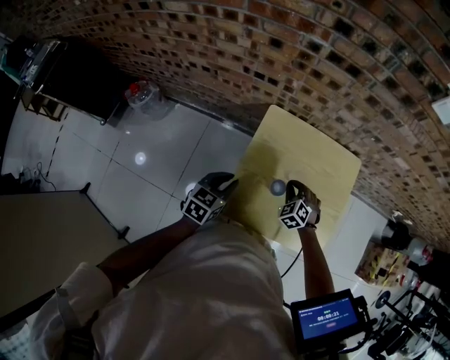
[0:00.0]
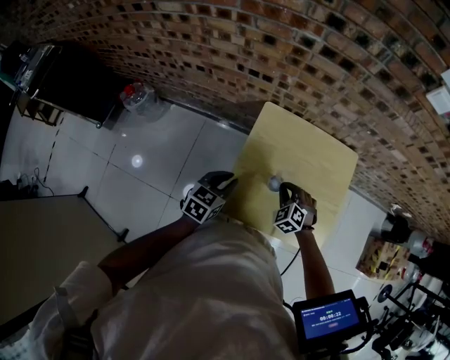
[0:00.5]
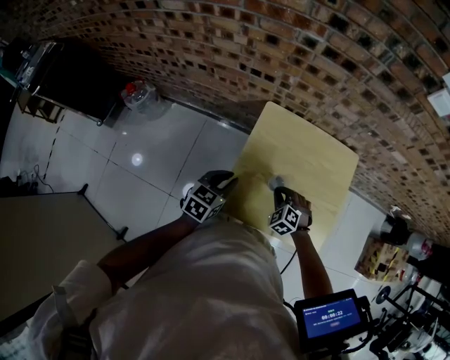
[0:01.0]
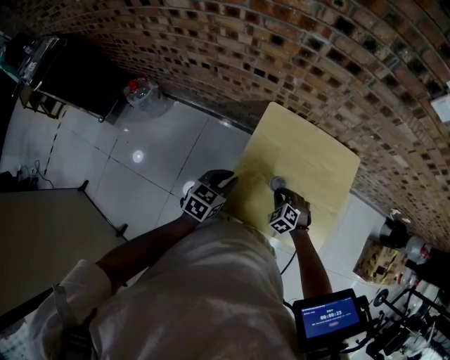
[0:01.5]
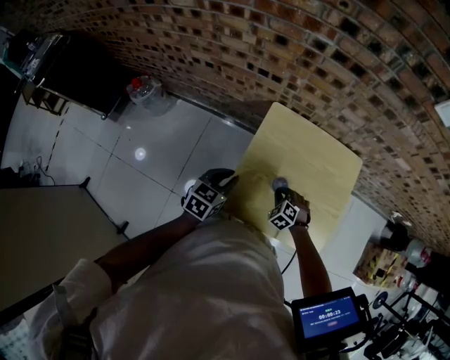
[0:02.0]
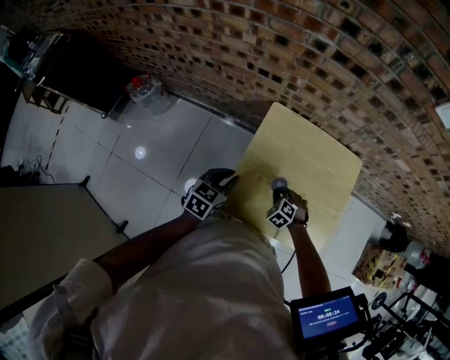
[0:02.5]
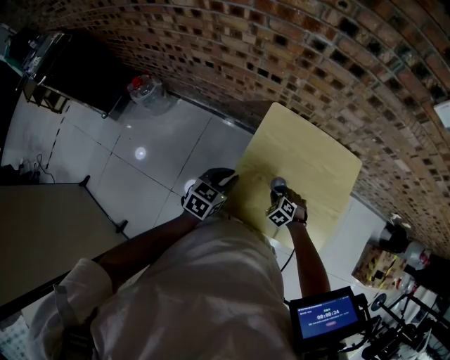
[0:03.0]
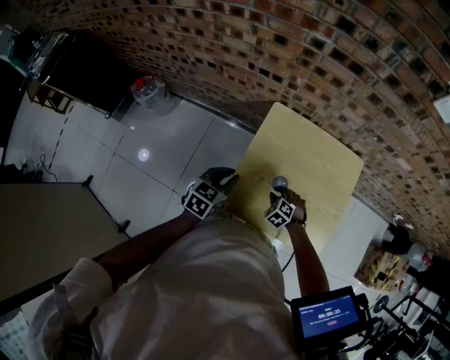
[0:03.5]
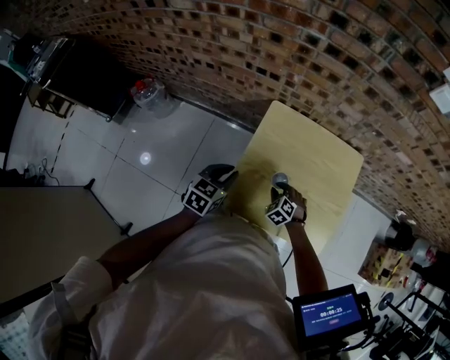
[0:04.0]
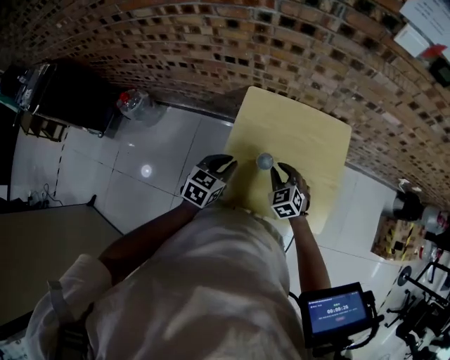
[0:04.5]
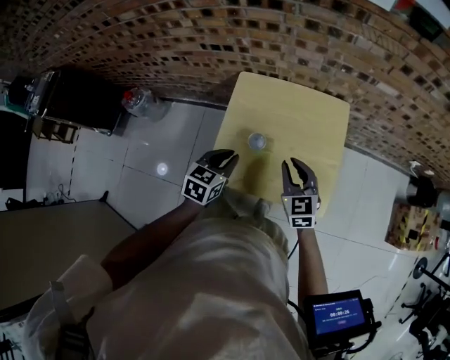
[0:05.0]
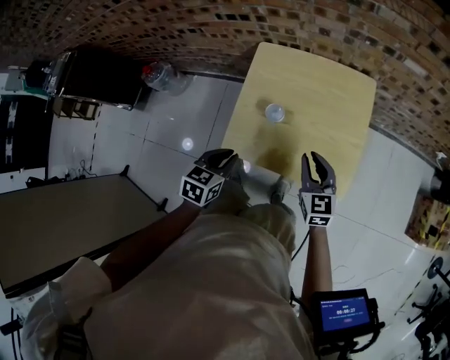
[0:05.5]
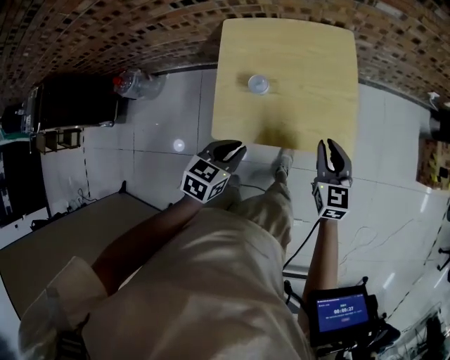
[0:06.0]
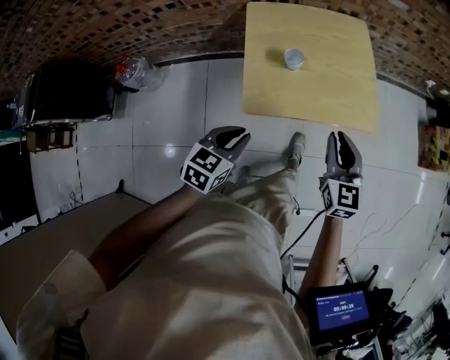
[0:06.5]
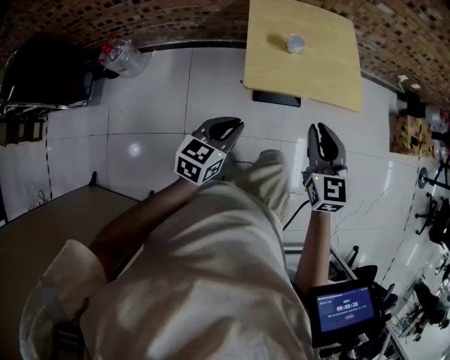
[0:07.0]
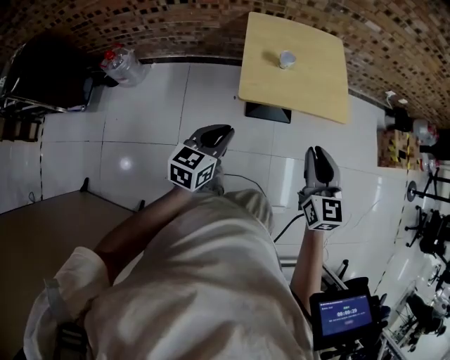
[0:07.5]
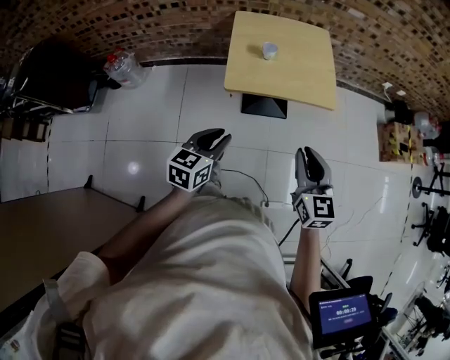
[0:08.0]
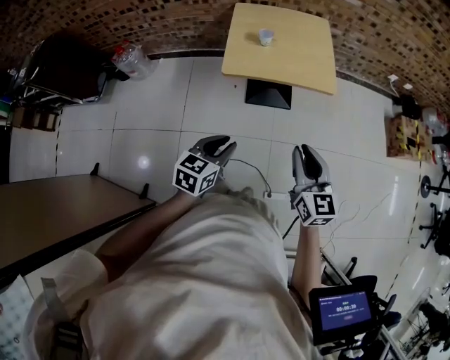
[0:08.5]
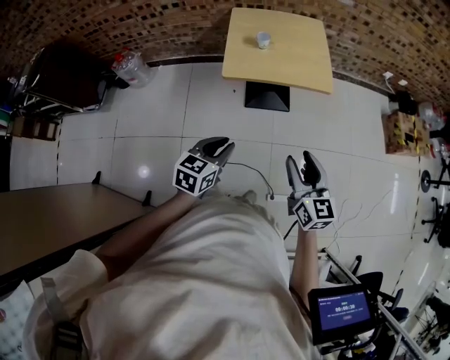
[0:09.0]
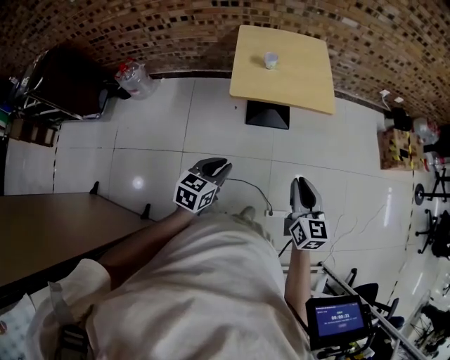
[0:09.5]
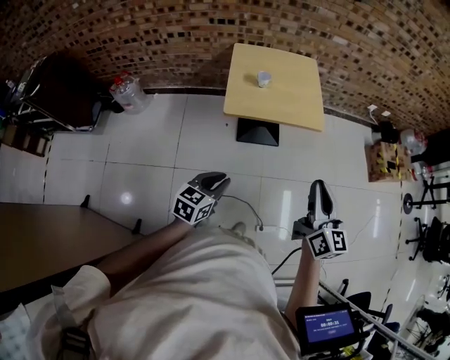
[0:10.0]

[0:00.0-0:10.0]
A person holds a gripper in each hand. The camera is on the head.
0:00.0 to 0:02.0: The right gripper shifts about 10 cm backward and downward.
0:02.0 to 0:04.0: The grippers make only small movements.
0:04.0 to 0:06.0: The right gripper shifts approximately 30 cm to the right, upward and backward, and points its fingers some 40 degrees further upward, while the left gripper heads to the right and backward, covering some 25 cm.
0:06.0 to 0:08.0: Both grippers move backward, roughly 35 cm. The left gripper turns by approximately 20 degrees.
0:08.0 to 0:10.0: The right gripper goes about 15 cm upward, backward and to the right, rotates approximately 20 degrees, and opens, then closes once more. The left gripper shifts about 10 cm backward.

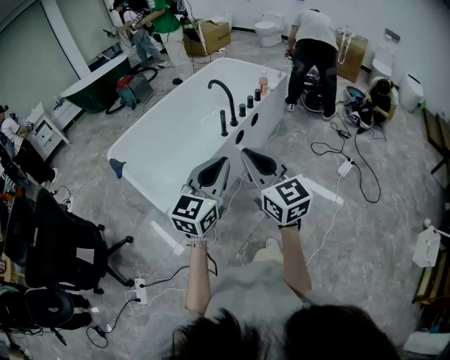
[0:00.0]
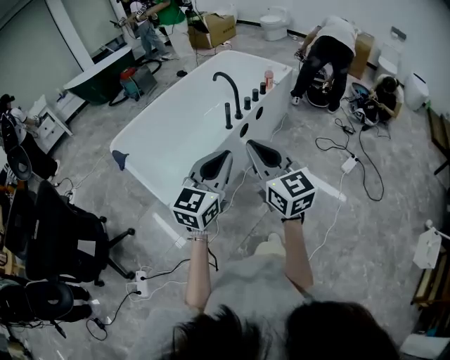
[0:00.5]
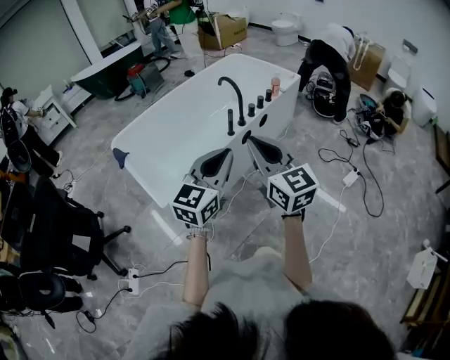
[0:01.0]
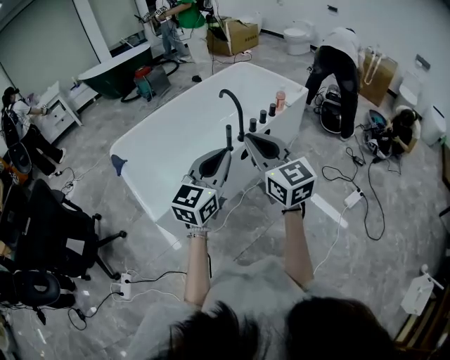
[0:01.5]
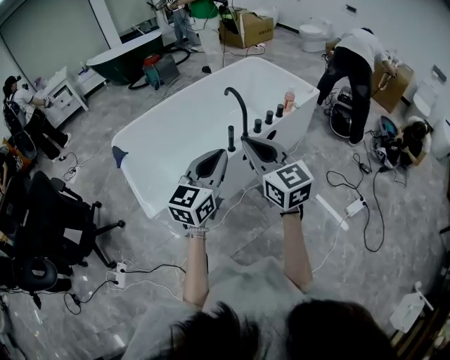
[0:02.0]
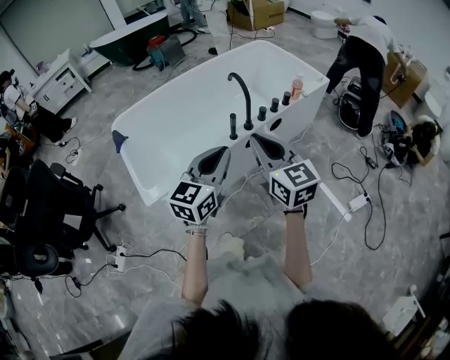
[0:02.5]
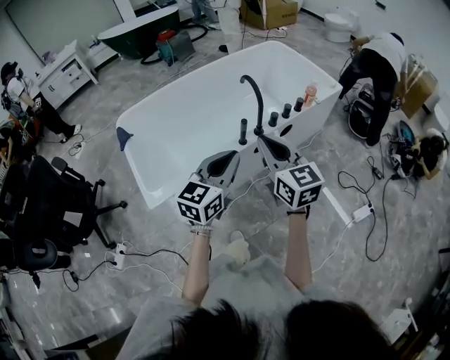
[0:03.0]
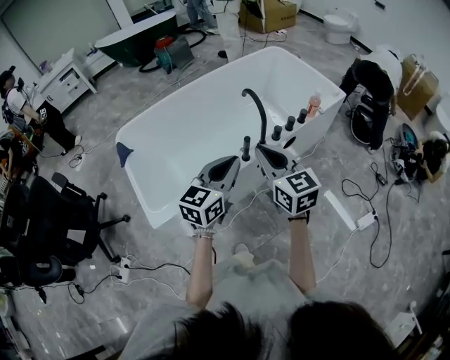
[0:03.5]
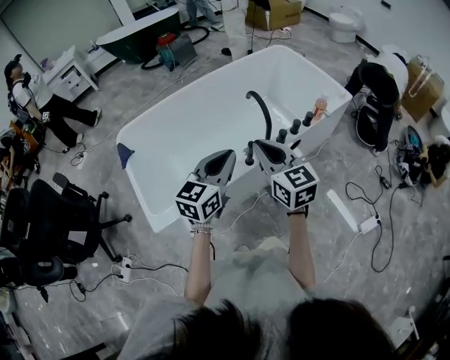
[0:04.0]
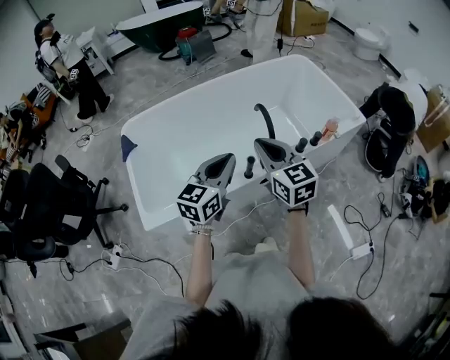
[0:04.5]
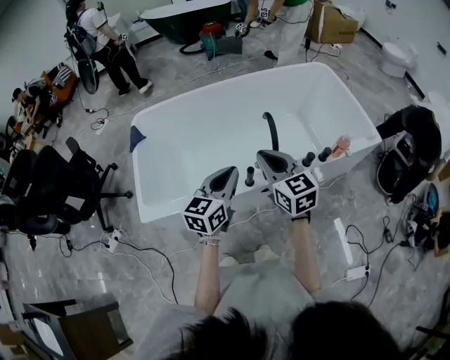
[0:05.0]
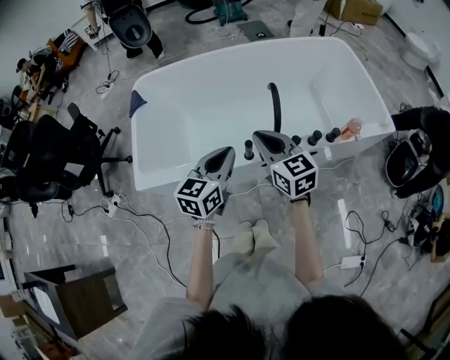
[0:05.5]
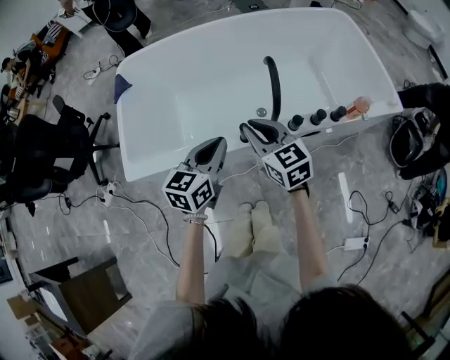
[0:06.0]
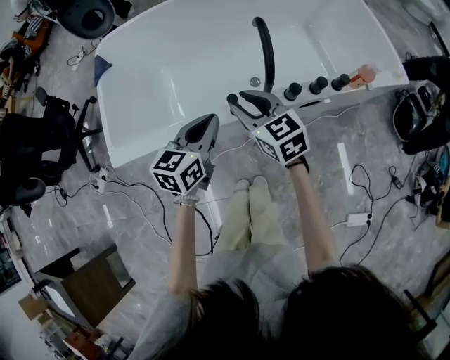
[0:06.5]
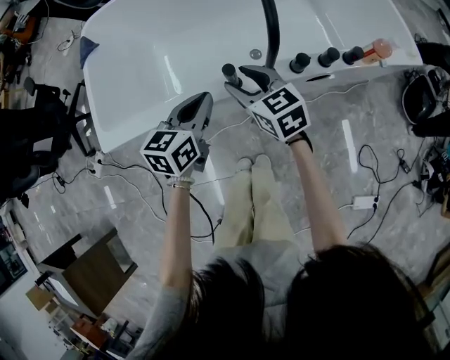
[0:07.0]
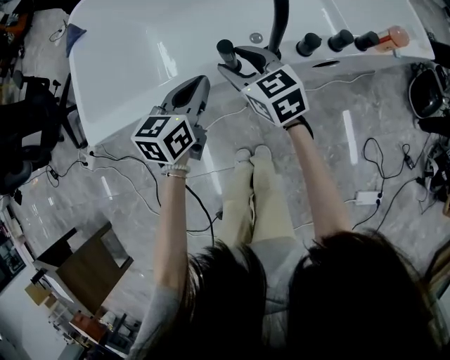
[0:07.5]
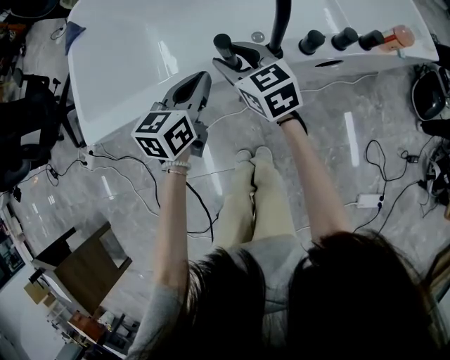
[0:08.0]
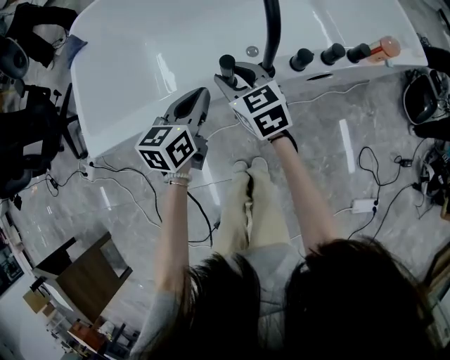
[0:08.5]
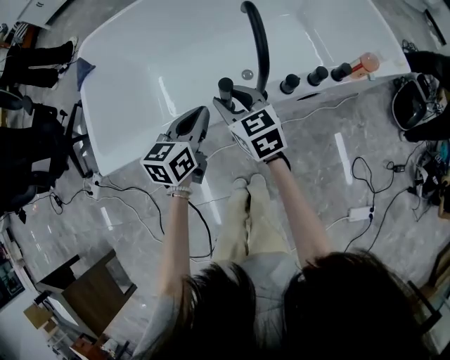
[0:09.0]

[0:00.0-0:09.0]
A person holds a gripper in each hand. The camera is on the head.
0:00.0 to 0:02.0: The two grippers go some 20 cm forward.
0:02.0 to 0:04.5: The two grippers go approximately 25 cm forward.
0:04.5 to 0:07.0: Both grippers travel together downward, roughly 25 cm. The right gripper rotates about 30 degrees, and opens its fingers, while the left gripper changes its angle by some 30 degrees.

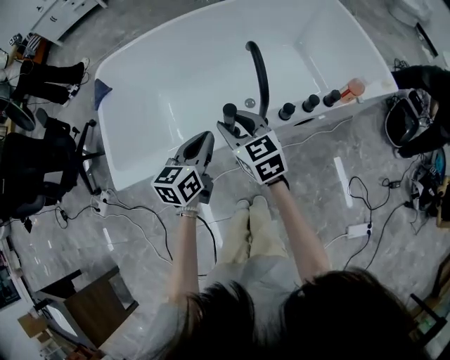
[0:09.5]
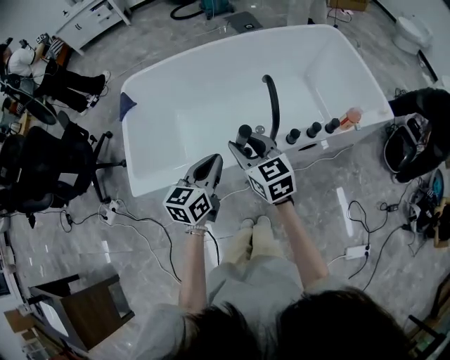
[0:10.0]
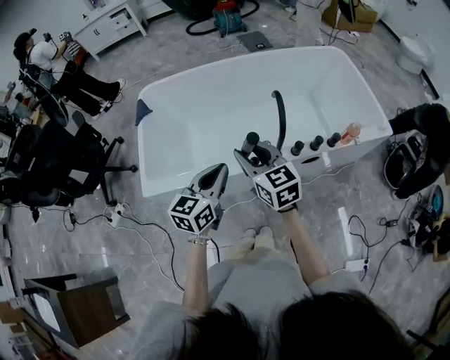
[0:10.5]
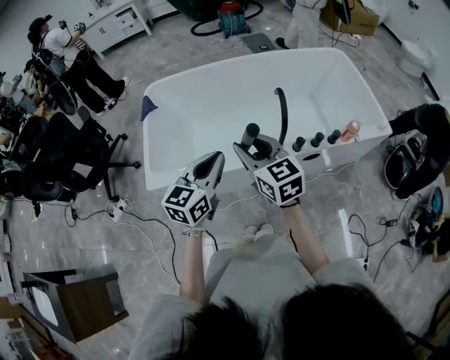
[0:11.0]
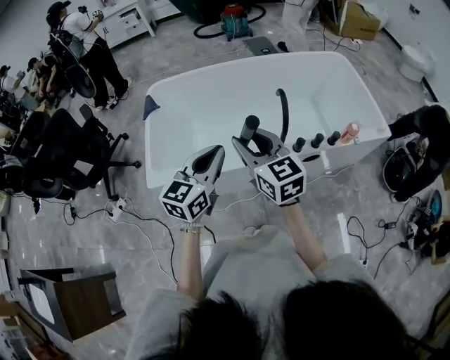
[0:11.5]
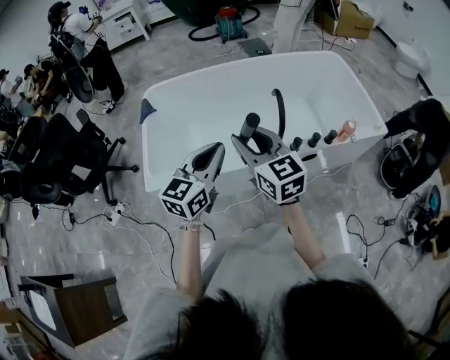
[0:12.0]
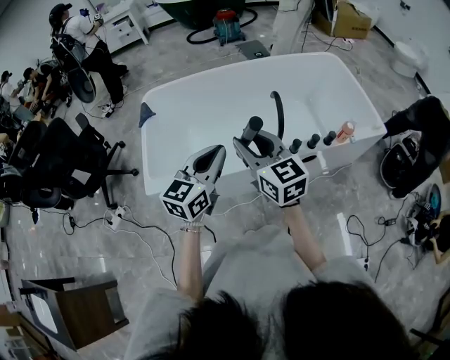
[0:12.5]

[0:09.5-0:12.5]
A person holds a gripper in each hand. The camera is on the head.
0:09.5 to 0:11.0: The two grippers go roughly 20 cm upward and backward.
0:11.0 to 0:12.5: There are only small adjustments of the grippers.

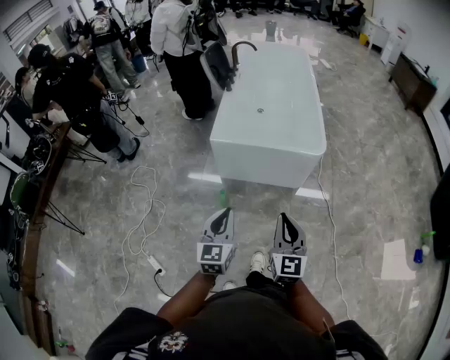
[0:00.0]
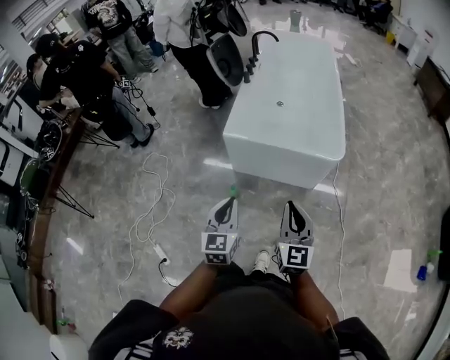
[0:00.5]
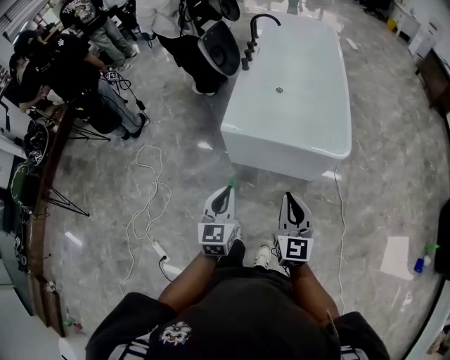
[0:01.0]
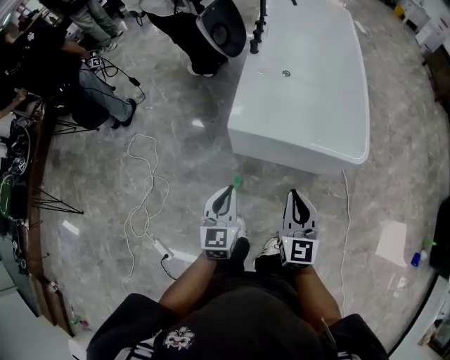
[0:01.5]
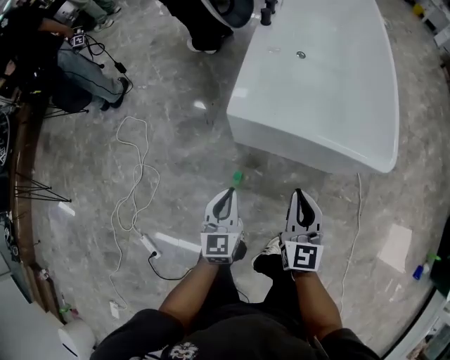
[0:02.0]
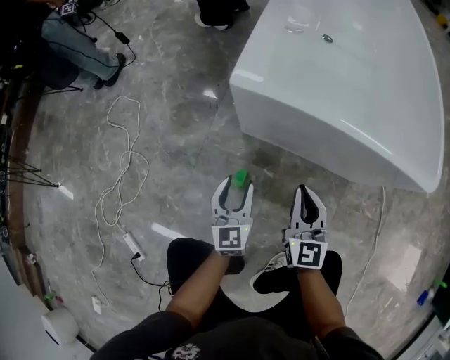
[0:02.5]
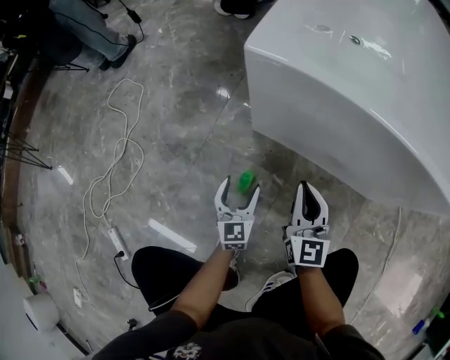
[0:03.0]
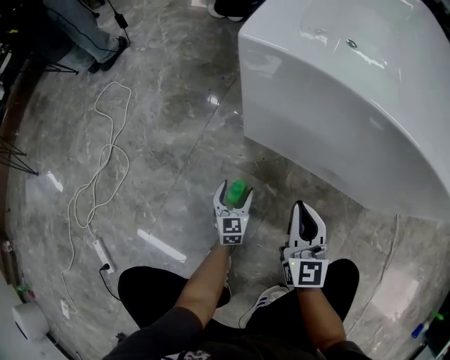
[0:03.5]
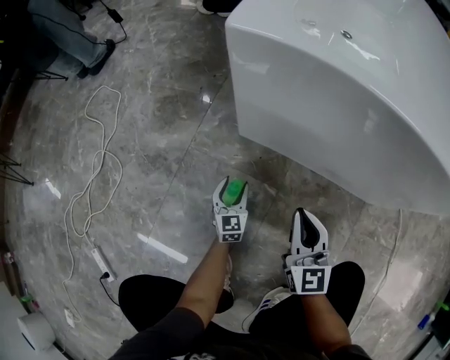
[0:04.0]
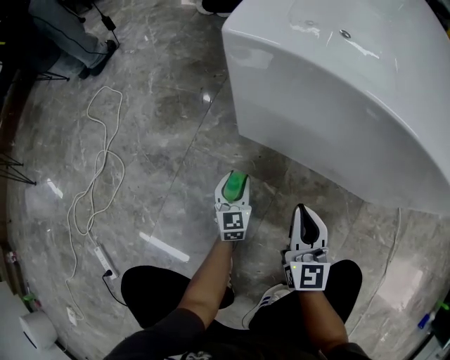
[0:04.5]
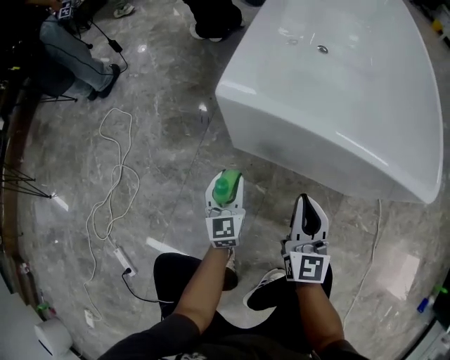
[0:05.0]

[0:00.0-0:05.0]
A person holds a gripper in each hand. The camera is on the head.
0:00.0 to 0:02.5: Both grippers are carried forward, approximately 40 cm. The two grippers go some 50 cm downward. The left gripper opens its fingers.
0:02.5 to 0:05.0: The right gripper moves approximately 20 cm downward and comes back. Meanwhile the left gripper is displaced forward by roughly 5 cm, reaches some 35 cm downward, then returns, and opens and closes again.
